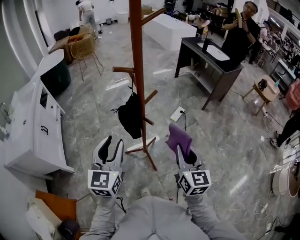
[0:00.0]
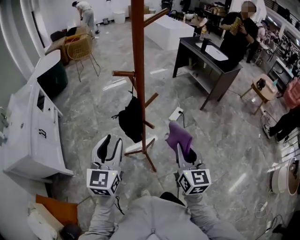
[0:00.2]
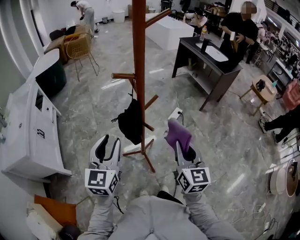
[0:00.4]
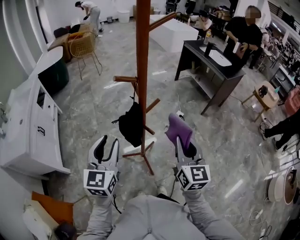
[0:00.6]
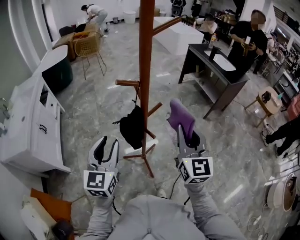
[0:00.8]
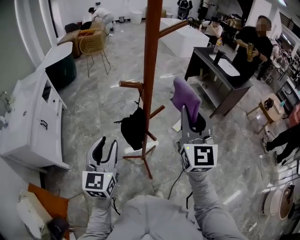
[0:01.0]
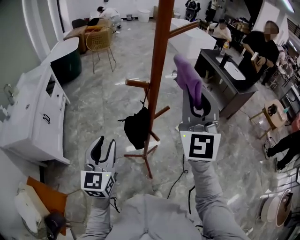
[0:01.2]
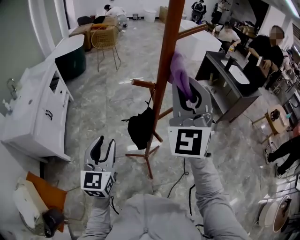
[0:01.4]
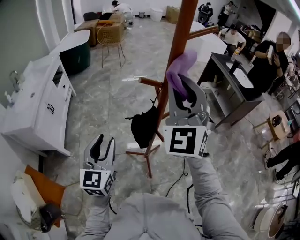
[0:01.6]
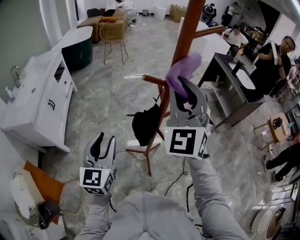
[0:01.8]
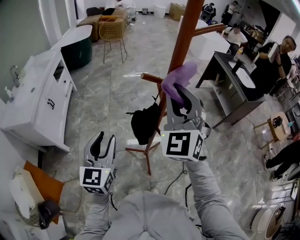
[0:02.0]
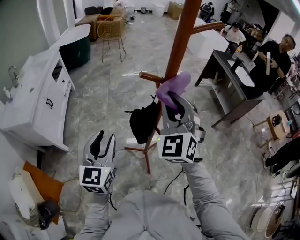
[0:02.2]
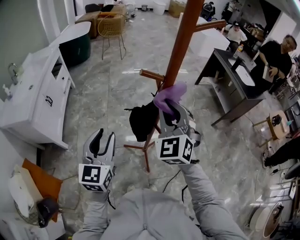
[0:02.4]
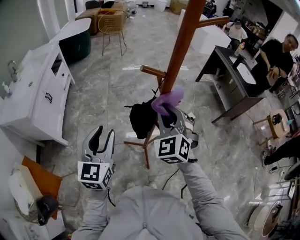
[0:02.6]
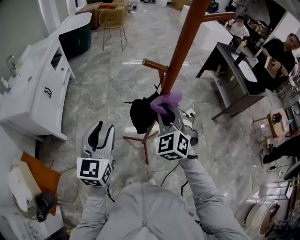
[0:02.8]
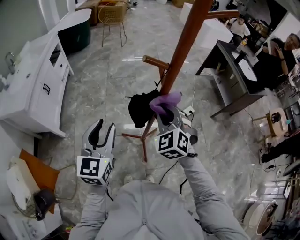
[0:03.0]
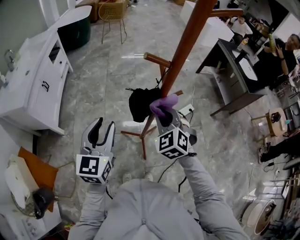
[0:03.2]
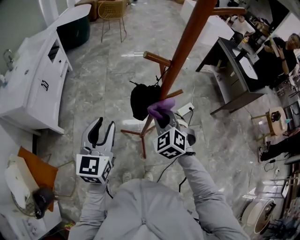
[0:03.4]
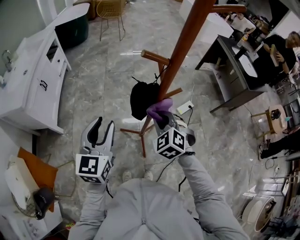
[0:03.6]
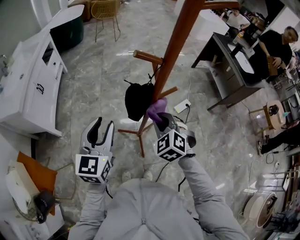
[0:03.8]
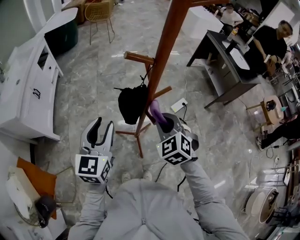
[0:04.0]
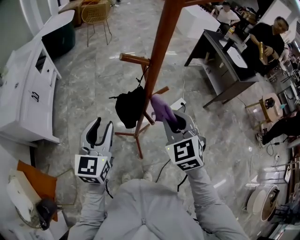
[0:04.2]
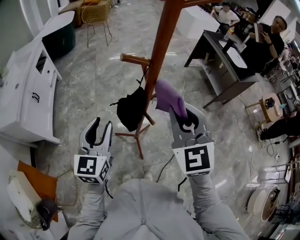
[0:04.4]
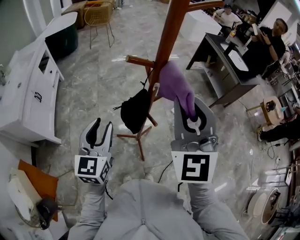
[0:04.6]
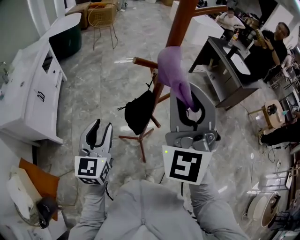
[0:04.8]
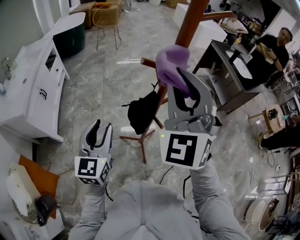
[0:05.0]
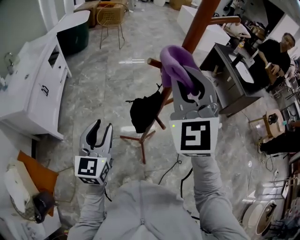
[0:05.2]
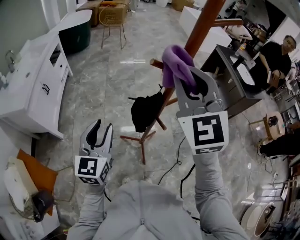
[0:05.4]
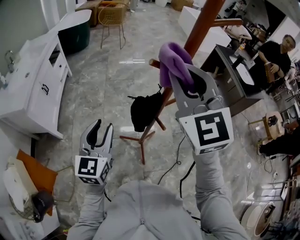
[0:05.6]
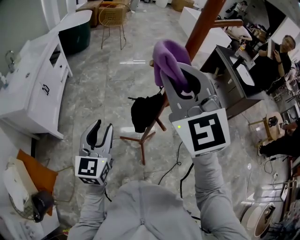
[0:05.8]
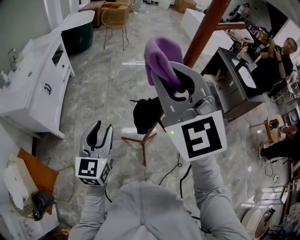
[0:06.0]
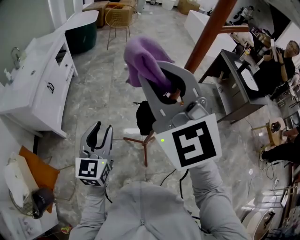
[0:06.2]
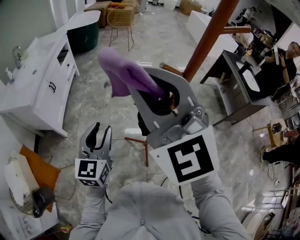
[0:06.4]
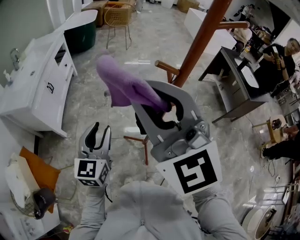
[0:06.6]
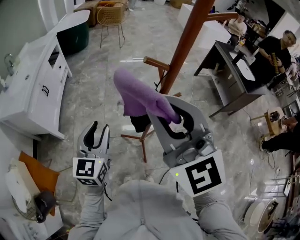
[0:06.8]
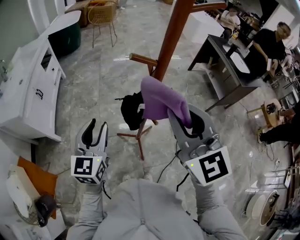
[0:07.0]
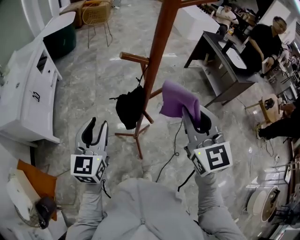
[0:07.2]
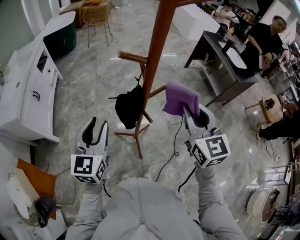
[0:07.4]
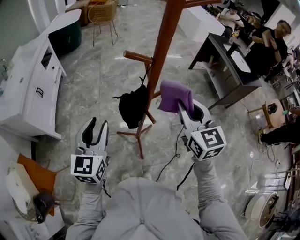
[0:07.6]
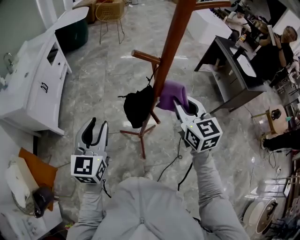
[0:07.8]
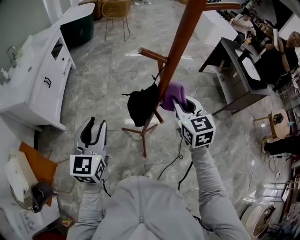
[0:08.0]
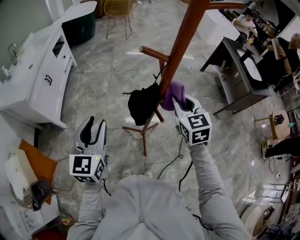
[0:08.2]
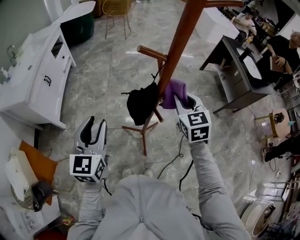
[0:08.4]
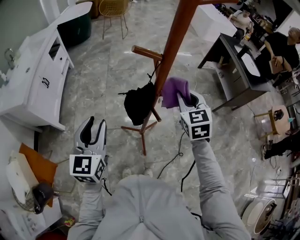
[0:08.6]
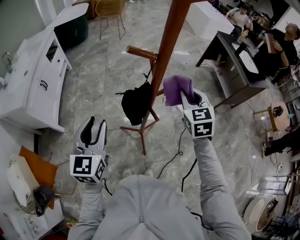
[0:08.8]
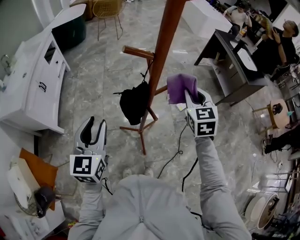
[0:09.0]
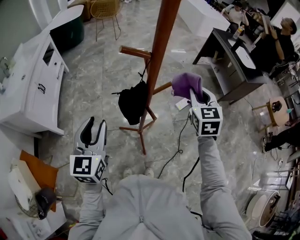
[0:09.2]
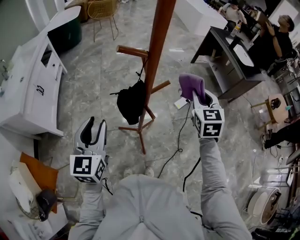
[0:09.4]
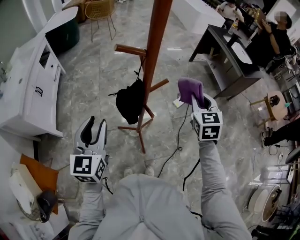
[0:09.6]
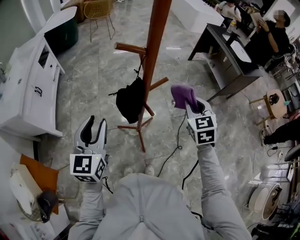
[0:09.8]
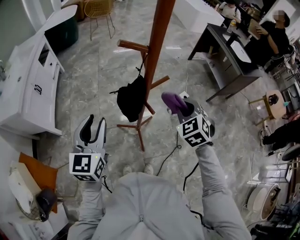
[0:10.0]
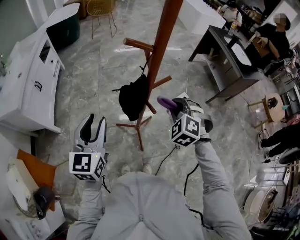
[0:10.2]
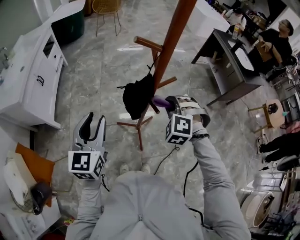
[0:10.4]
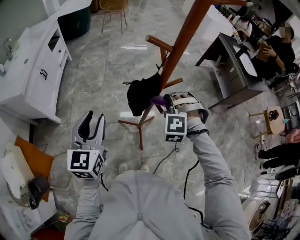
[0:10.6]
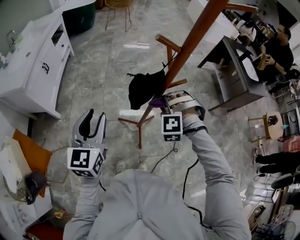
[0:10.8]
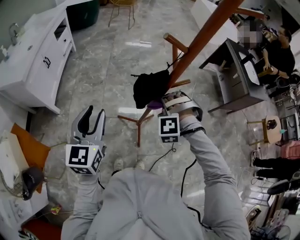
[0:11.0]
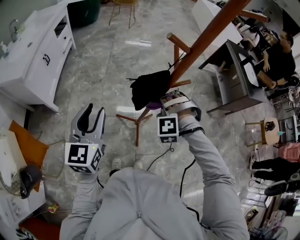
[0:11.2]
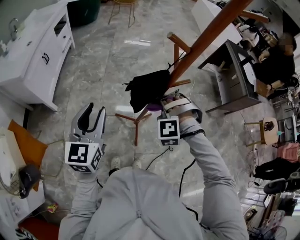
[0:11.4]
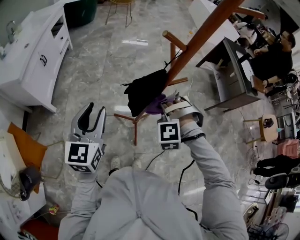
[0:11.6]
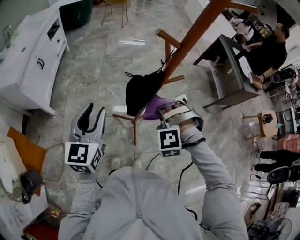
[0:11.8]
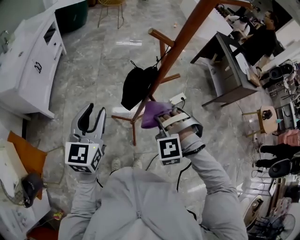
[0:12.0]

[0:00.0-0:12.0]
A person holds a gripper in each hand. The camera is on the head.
0:00.0 to 0:01.6: The right gripper moves upward, forward and to the left, about 35 cm, and rotates around the line of its fingers by about 50 degrees, counterclockwise from behind. The left gripper shifts about 5 cm to the left.
0:01.6 to 0:03.0: The right gripper is displaced downward by about 25 cm, and points its fingers some 40 degrees further downward.
0:03.0 to 0:04.4: The right gripper goes approximately 15 cm upward, to the right and backward, and changes its angle by roughly 20 degrees.
0:04.4 to 0:06.0: The right gripper shifts approximately 20 cm to the left and upward, and rotates roughly 20 degrees. Meanwhile the left gripper shifts approximately 5 cm to the left.
0:06.0 to 0:07.6: The right gripper goes approximately 25 cm to the right and downward, and turns by roughly 30 degrees.
0:07.6 to 0:09.0: The right gripper goes roughly 10 cm forward, downward and to the right, and changes its angle by about 20 degrees.
0:09.0 to 0:10.4: The right gripper goes roughly 15 cm to the left, downward and backward, and rotates around the line of its fingers by approximately 60 degrees, counterclockwise from behind.
0:10.4 to 0:12.0: The right gripper goes some 10 cm backward, and changes its angle by approximately 30 degrees.

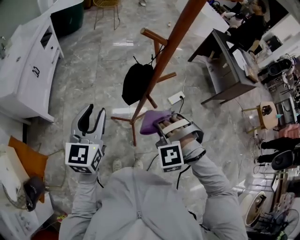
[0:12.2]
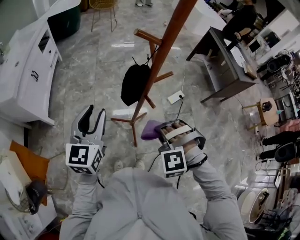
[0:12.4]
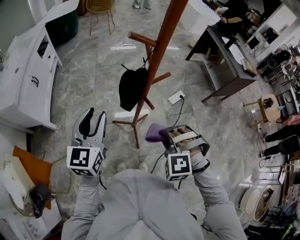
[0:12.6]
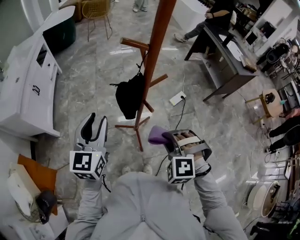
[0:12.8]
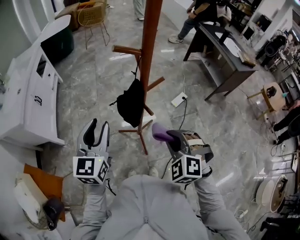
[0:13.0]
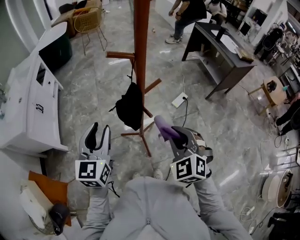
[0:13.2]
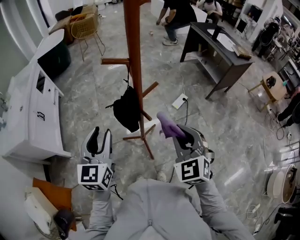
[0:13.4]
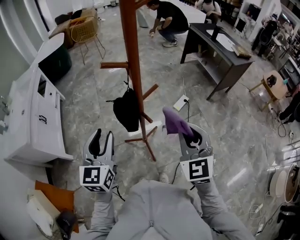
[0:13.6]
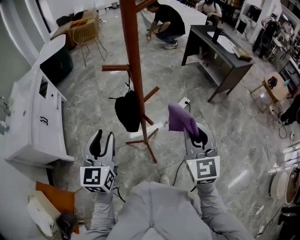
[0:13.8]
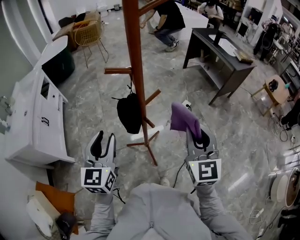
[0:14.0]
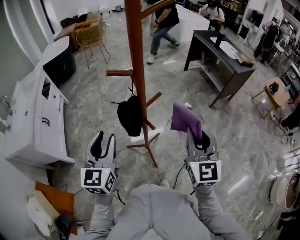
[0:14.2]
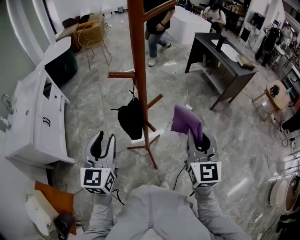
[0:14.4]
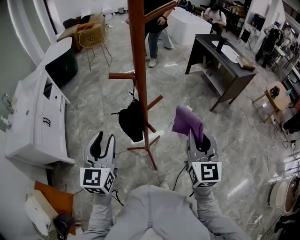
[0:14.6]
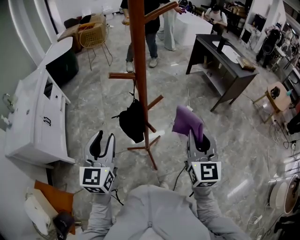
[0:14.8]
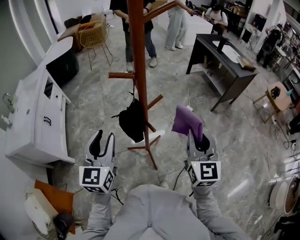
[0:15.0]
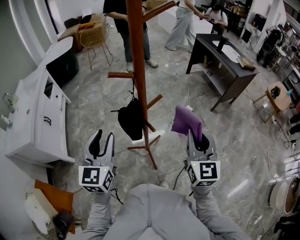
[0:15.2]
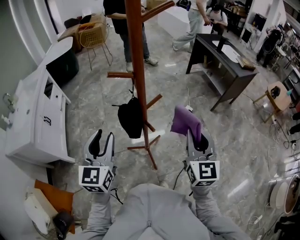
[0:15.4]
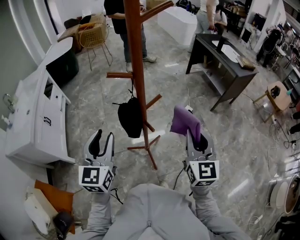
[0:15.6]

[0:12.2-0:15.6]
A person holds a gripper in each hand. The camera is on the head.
0:12.2 to 0:13.8: The right gripper moves upward and to the right, approximately 20 cm, and rotates around the line of its fingers by roughly 90 degrees, clockwise from behind, while the left gripper changes place by some 5 cm.
0:13.8 to 0:15.6: There are only small adjustments of the grippers.

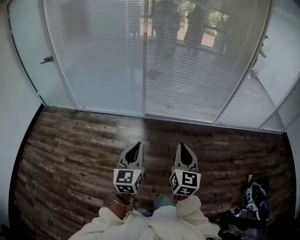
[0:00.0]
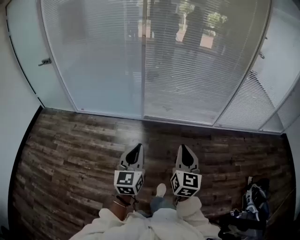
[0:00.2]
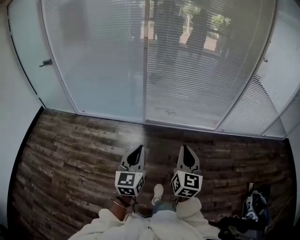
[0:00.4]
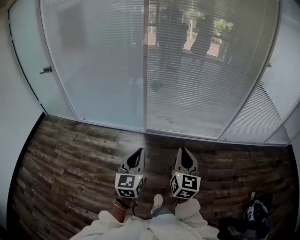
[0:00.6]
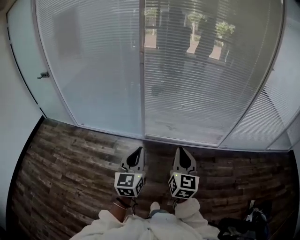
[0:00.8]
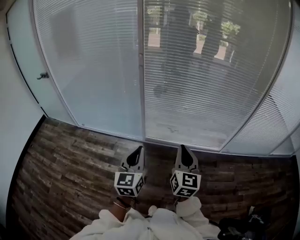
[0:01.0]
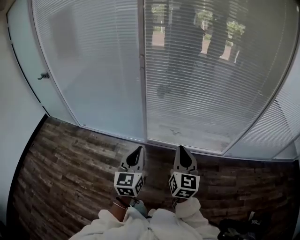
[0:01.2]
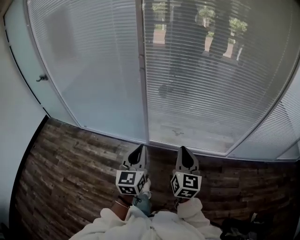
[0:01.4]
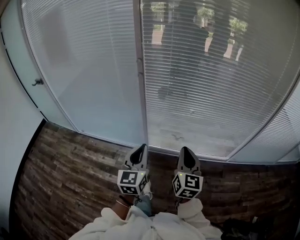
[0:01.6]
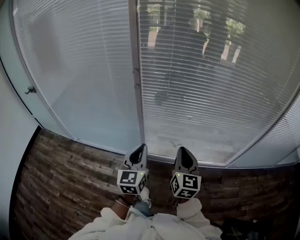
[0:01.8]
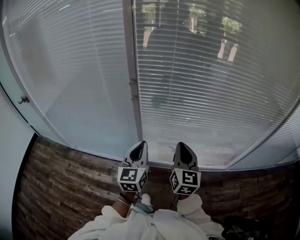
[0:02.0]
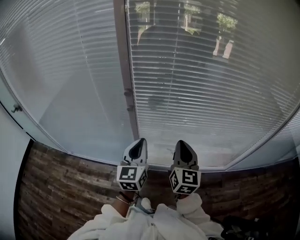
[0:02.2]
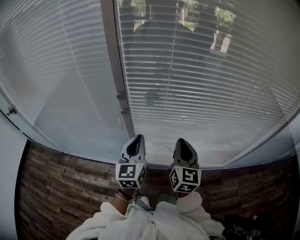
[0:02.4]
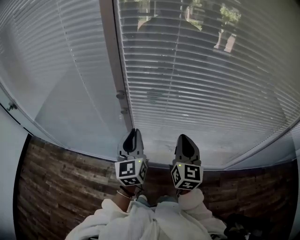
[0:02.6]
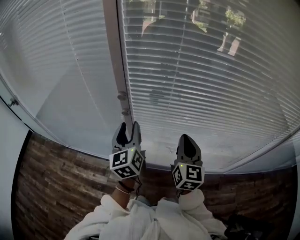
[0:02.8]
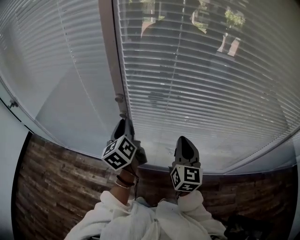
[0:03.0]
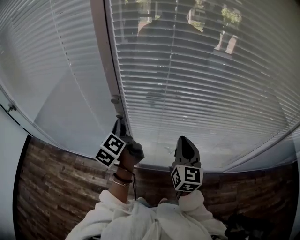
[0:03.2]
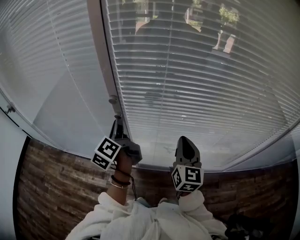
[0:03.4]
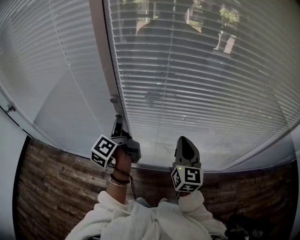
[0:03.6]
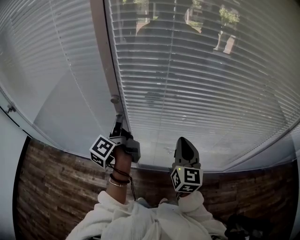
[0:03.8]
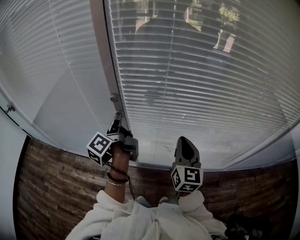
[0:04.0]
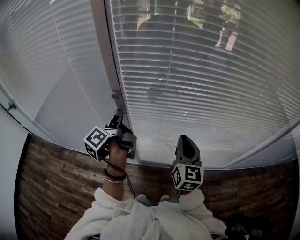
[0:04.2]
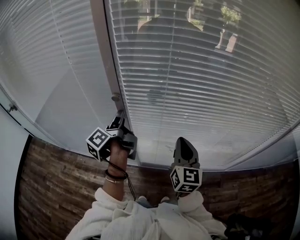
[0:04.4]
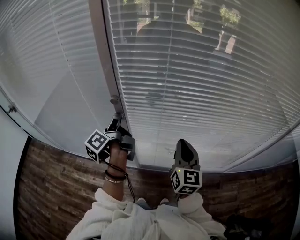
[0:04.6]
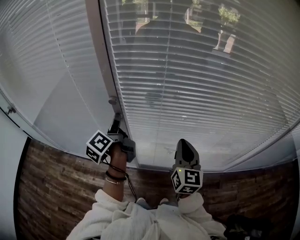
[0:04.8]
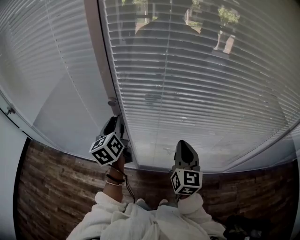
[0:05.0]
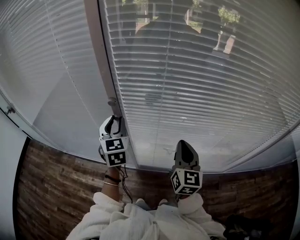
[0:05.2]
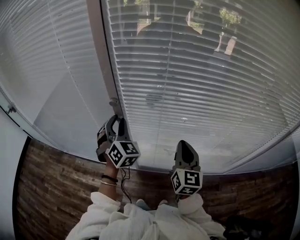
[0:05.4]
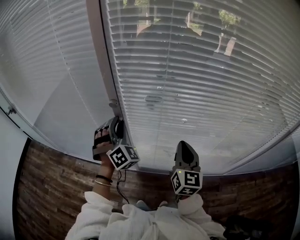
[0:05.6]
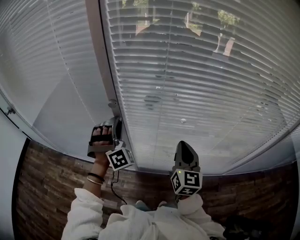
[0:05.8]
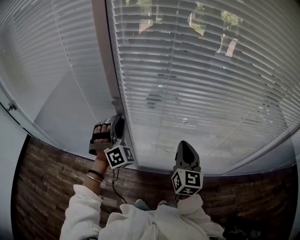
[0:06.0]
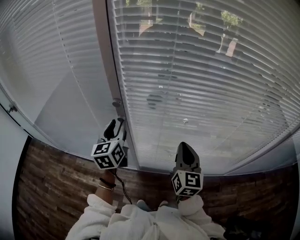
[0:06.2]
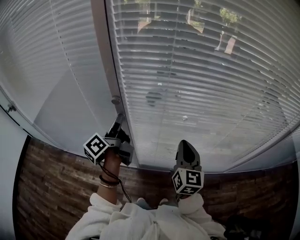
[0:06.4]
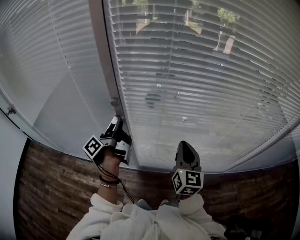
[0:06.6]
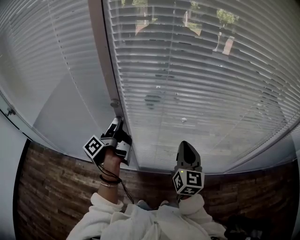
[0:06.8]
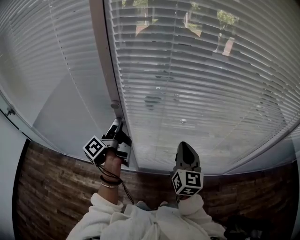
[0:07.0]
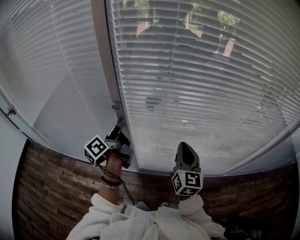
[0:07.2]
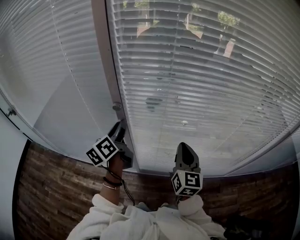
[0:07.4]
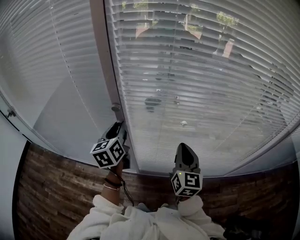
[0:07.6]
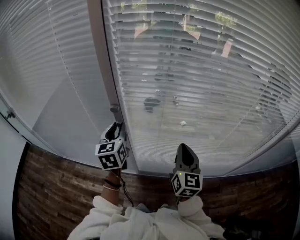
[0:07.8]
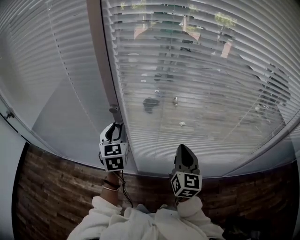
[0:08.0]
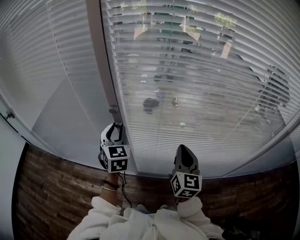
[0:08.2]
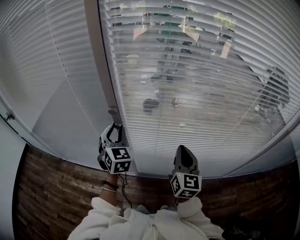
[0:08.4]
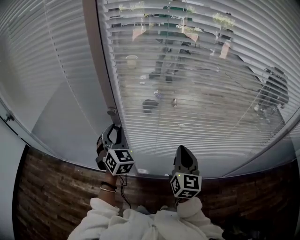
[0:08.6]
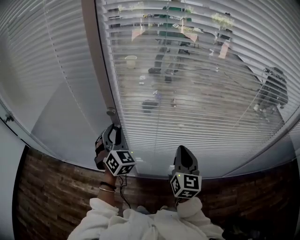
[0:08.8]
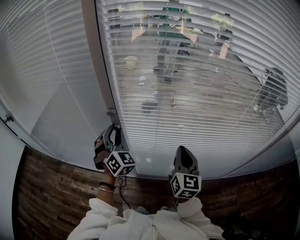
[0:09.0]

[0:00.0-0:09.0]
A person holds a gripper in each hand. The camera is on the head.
0:00.0 to 0:01.6: Both grippers are carried forward, approximately 50 cm.
0:01.6 to 0:03.0: Both grippers move forward, roughly 40 cm. The left gripper turns by roughly 30 degrees, and opens.
0:03.0 to 0:04.4: The left gripper rolls counterclockwise, seen from behind, by about 50 degrees, and closes, then opens again.
0:04.4 to 0:06.0: The left gripper rotates around the line of its fingers by some 150 degrees, clockwise from behind.
0:06.0 to 0:07.6: The left gripper rotates around the line of its fingers by some 90 degrees, counterclockwise from behind.
0:07.6 to 0:09.0: The left gripper rotates around the line of its fingers by some 60 degrees, clockwise from behind.
